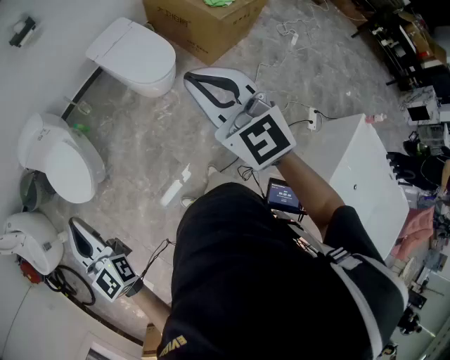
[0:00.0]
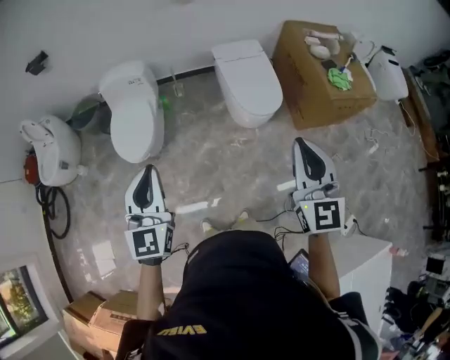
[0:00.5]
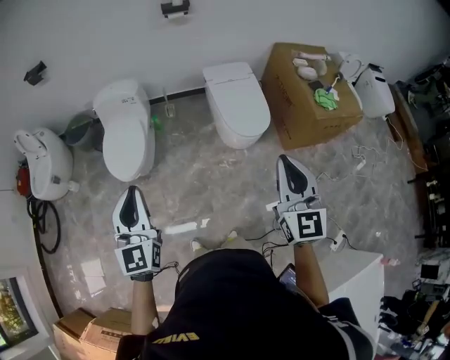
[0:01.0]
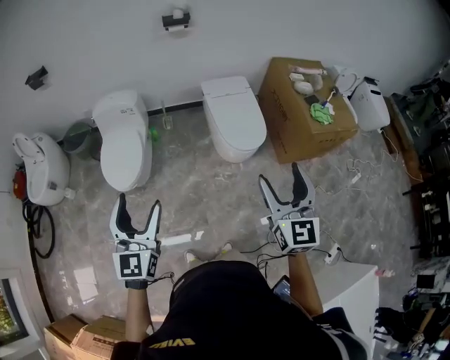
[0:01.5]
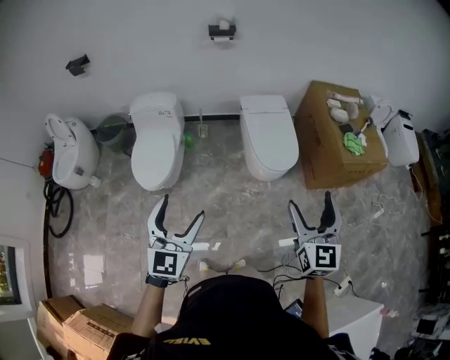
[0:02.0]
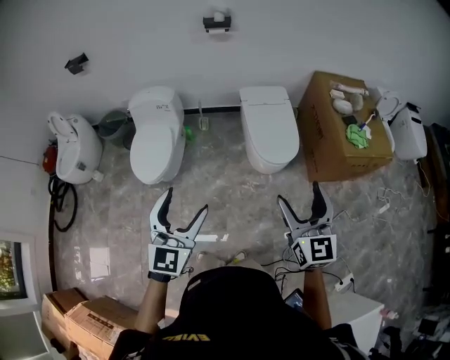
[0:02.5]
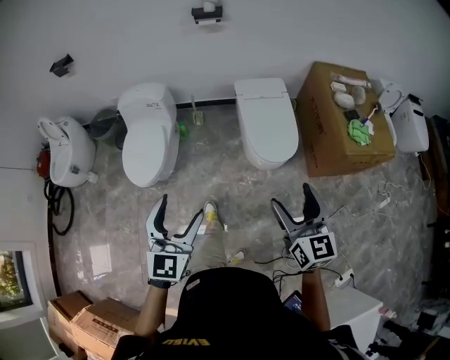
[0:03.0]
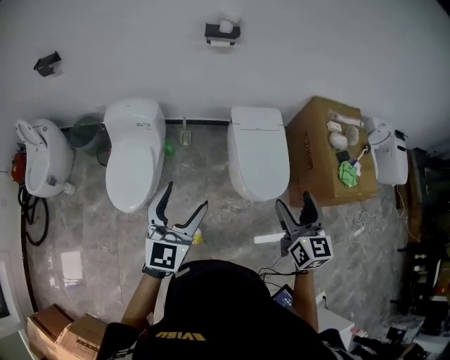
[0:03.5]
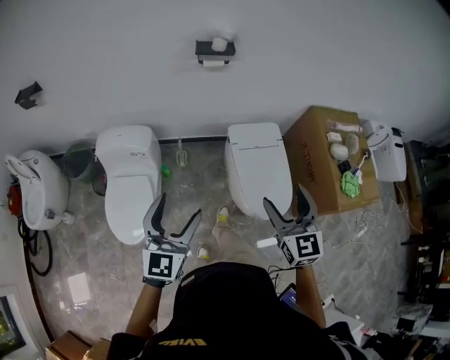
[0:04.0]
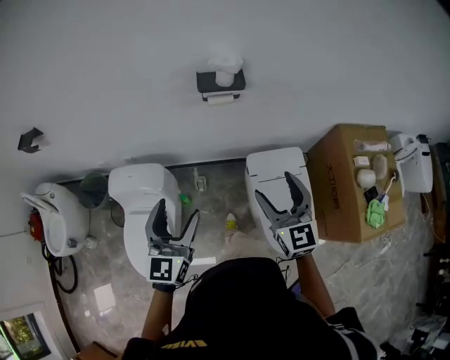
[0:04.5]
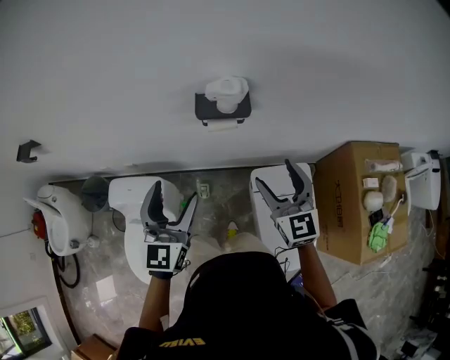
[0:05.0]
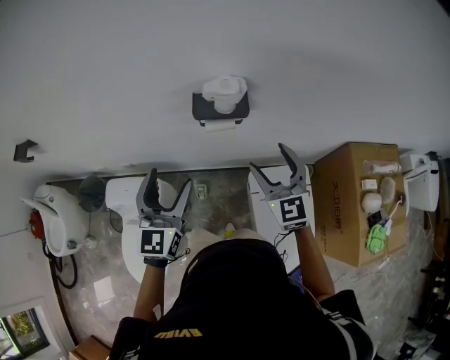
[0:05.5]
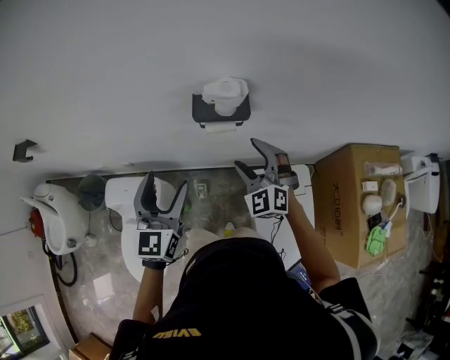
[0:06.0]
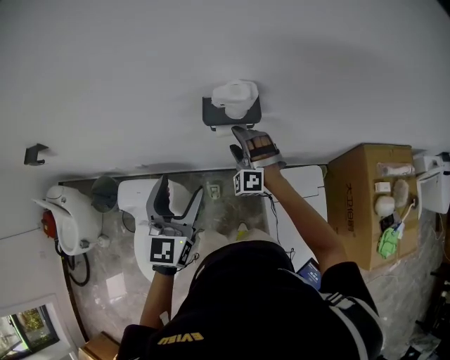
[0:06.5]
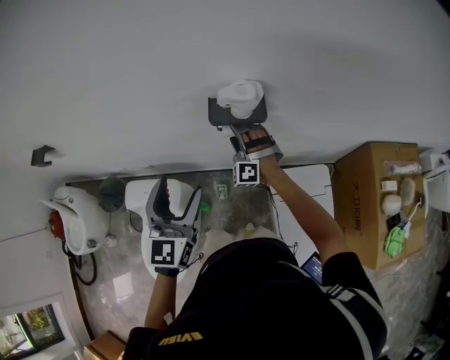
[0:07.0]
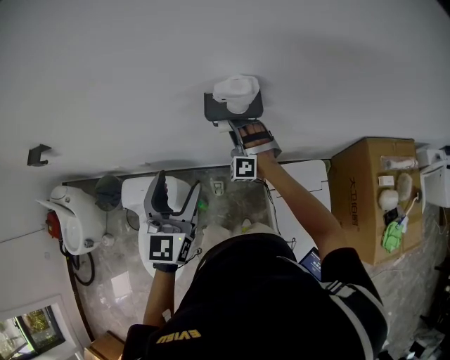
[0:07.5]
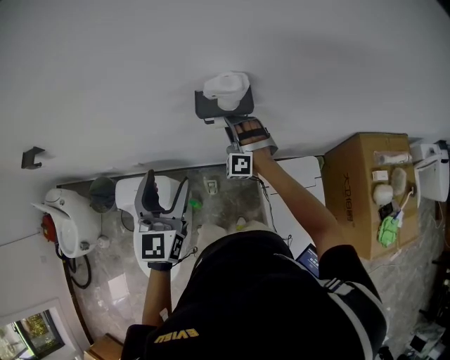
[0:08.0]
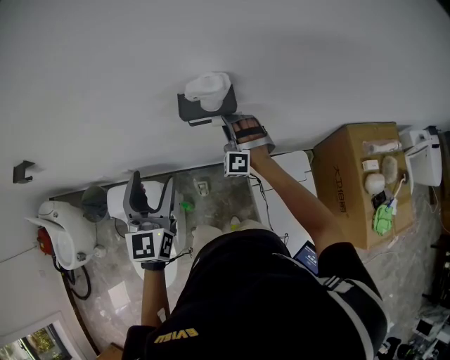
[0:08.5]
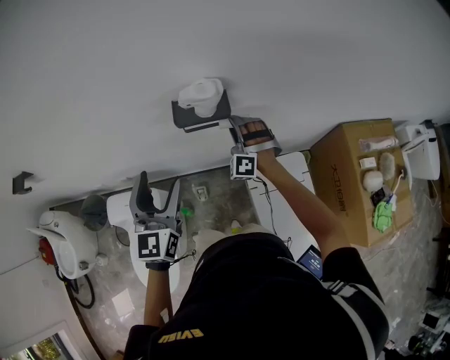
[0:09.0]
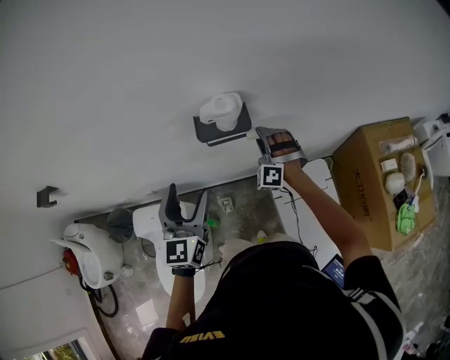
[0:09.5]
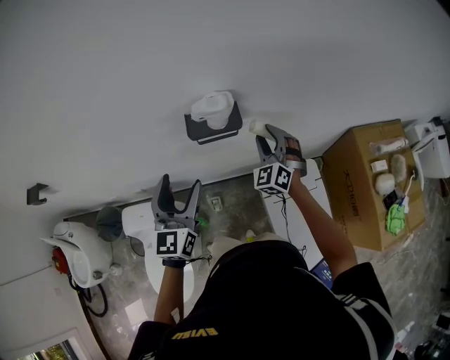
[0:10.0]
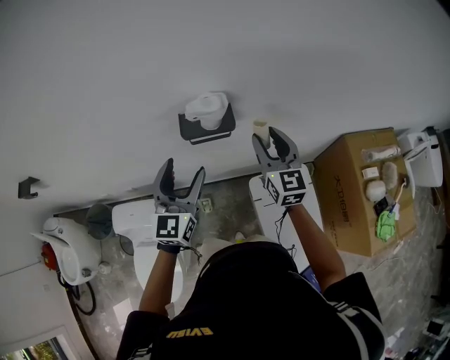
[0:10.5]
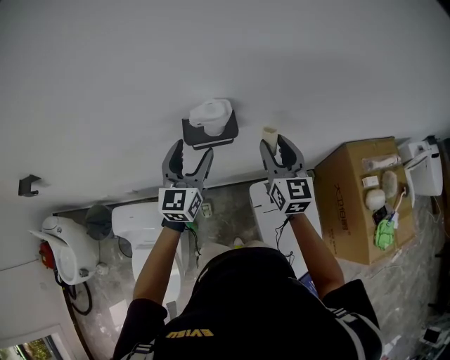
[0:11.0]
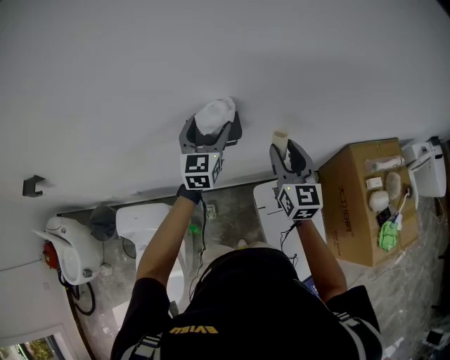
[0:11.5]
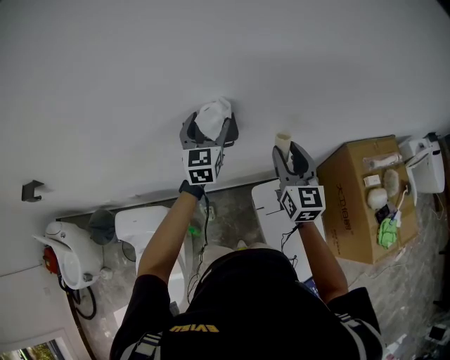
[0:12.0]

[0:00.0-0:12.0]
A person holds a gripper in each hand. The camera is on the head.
0:00.0 to 0:02.0: The left gripper moves to the right, about 10 cm, and opens its fingers, while the right gripper shifts by roughly 5 cm, and opens up.
0:02.0 to 0:04.0: The pair of grippers is taken forward, approximately 40 cm.
0:04.0 to 0:06.0: Both grippers are carried forward, some 50 cm. The right gripper turns by about 40 degrees.
0:06.0 to 0:08.0: The right gripper goes roughly 15 cm forward, downward and to the left, swivels approximately 30 degrees, and closes its fingers.
0:08.0 to 0:10.0: The left gripper moves some 5 cm, while the right gripper travels to the right and upward by about 15 cm, and changes its angle by about 40 degrees.
0:10.0 to 0:12.0: The right gripper heads upward, to the right and backward, covering roughly 15 cm, and rotates around the line of its fingers by some 50 degrees, clockwise from behind, while the left gripper travels forward and to the right by approximately 20 cm.

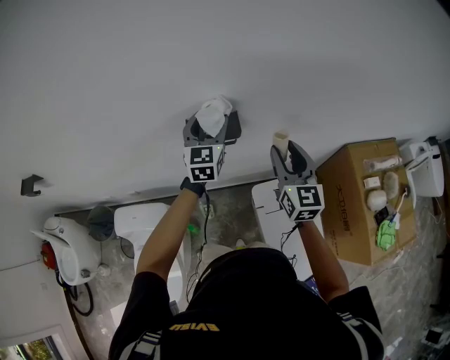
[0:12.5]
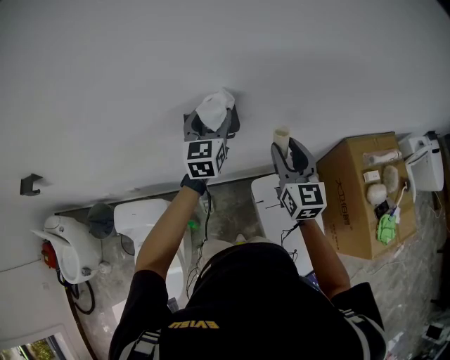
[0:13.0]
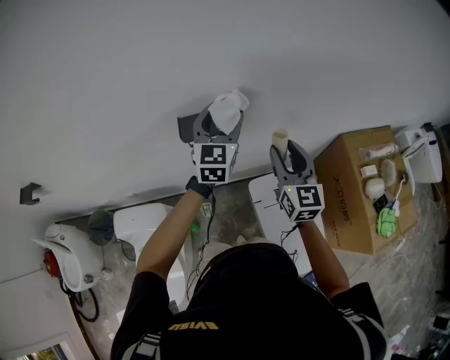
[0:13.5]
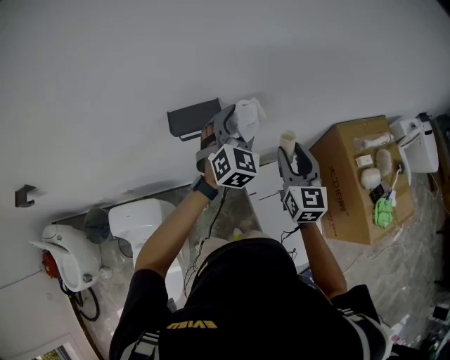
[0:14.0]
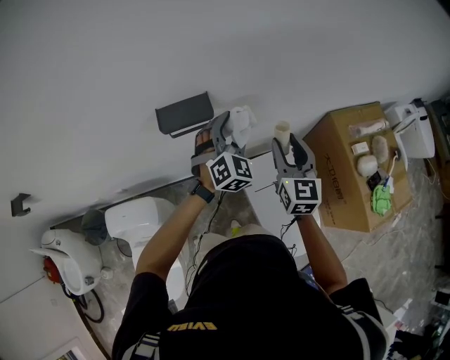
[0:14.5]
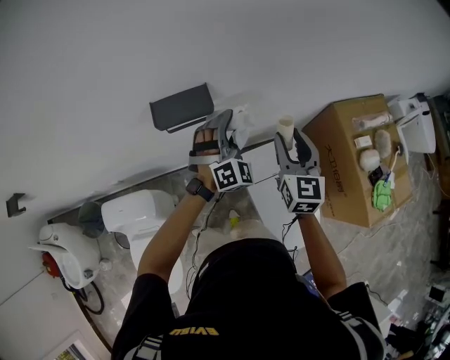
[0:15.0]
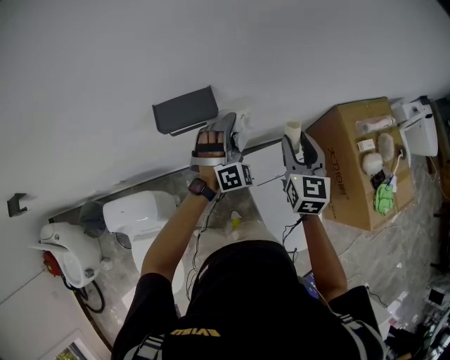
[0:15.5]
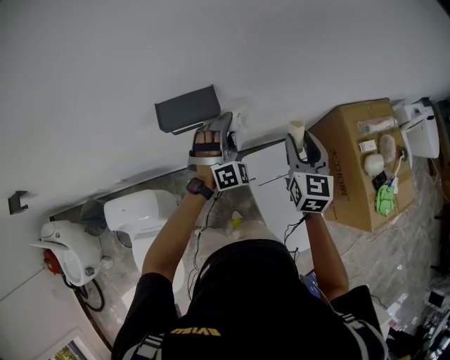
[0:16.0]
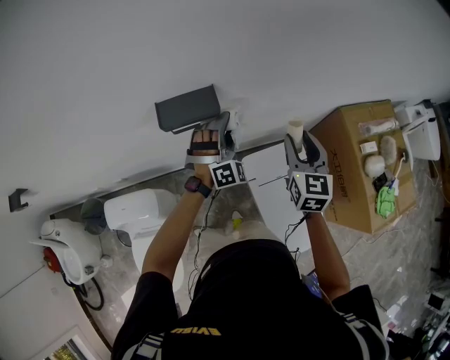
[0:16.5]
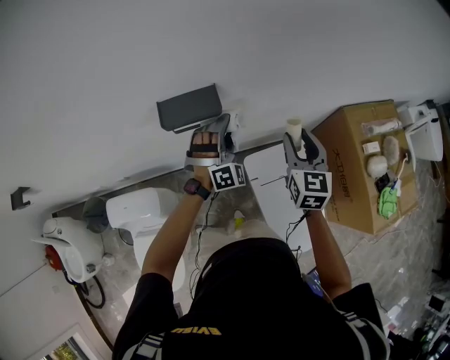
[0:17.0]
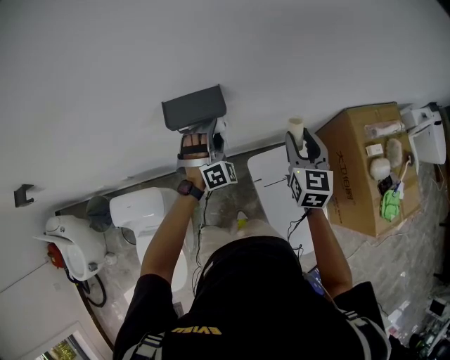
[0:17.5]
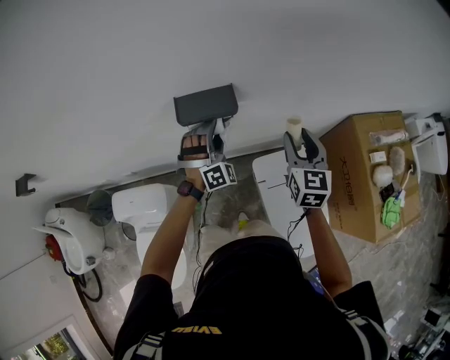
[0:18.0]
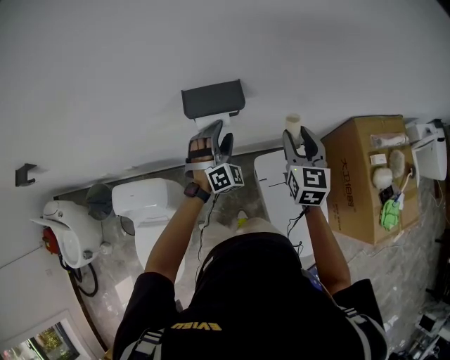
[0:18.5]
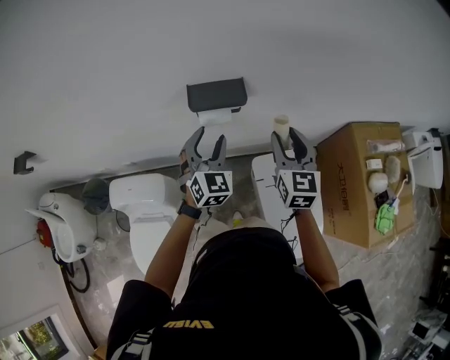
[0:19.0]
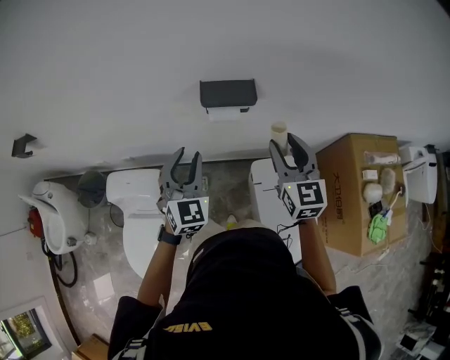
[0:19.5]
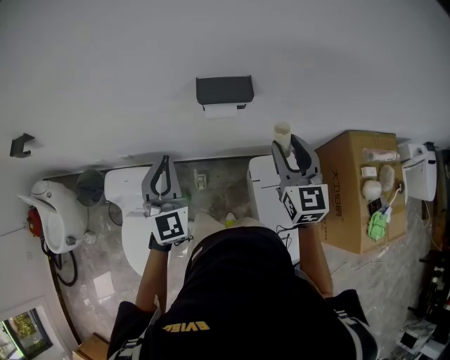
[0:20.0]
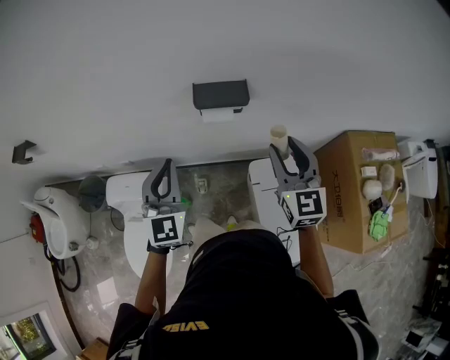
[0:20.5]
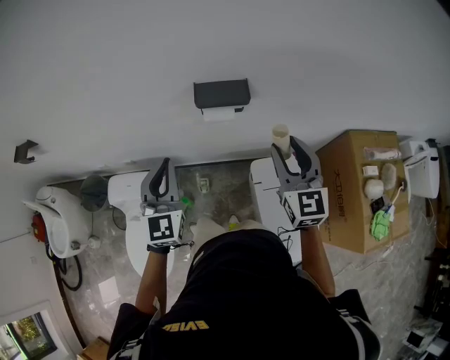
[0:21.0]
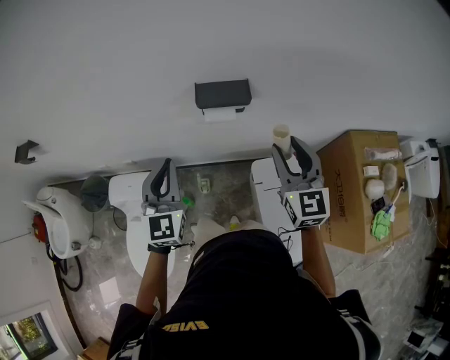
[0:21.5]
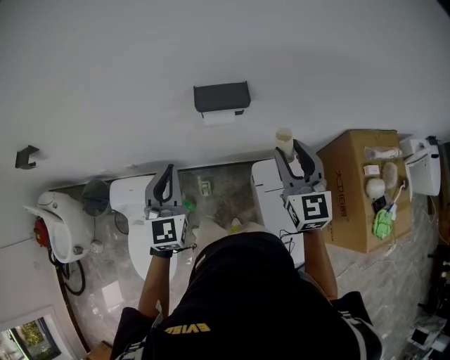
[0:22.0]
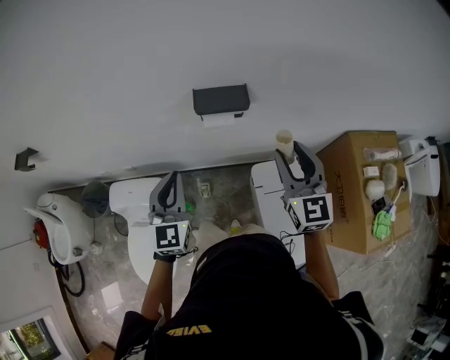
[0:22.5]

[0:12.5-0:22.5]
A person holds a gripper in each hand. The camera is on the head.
0:12.5 to 0:14.5: The right gripper heads to the right, covering some 5 cm. The left gripper moves to the right and backward, some 15 cm, and rotates approximately 40 degrees.
0:14.5 to 0:16.5: The right gripper changes place by approximately 5 cm, while the left gripper goes roughly 10 cm downward, and changes its angle by about 30 degrees.
0:16.5 to 0:18.5: Both grippers travel together to the left, roughly 5 cm.
0:18.5 to 0:20.5: The left gripper travels upward, to the left and backward by about 30 cm, rotates around the line of its fingers by approximately 50 degrees, counterclockwise from behind, and closes up, while the right gripper is displaced upward, backward and to the left by about 15 cm.
0:20.5 to 0:22.5: The grippers move only a little.

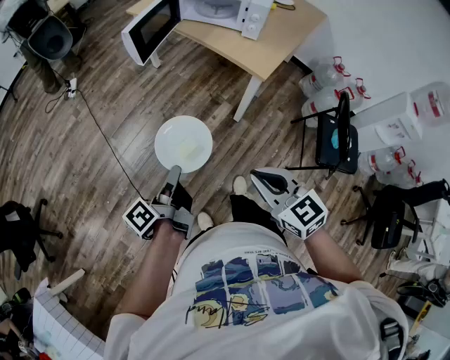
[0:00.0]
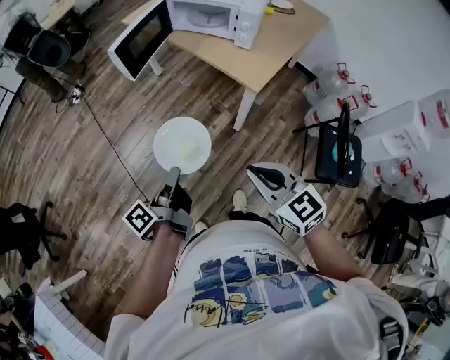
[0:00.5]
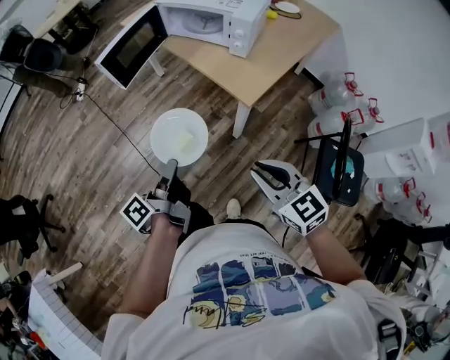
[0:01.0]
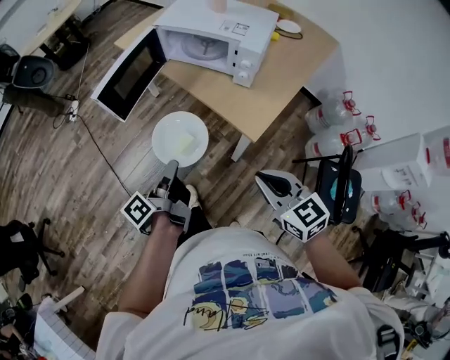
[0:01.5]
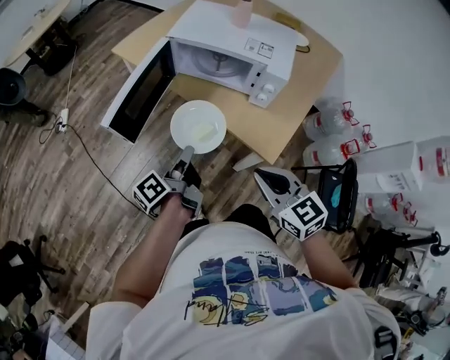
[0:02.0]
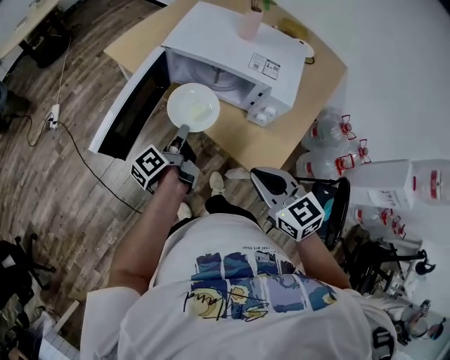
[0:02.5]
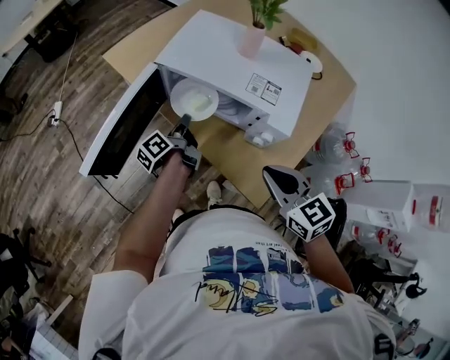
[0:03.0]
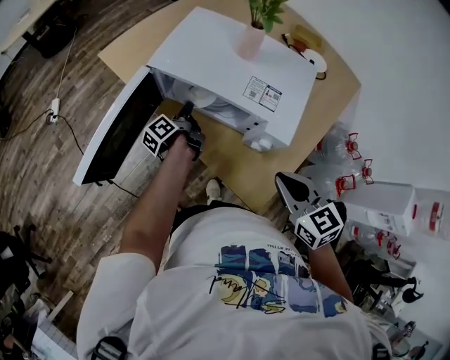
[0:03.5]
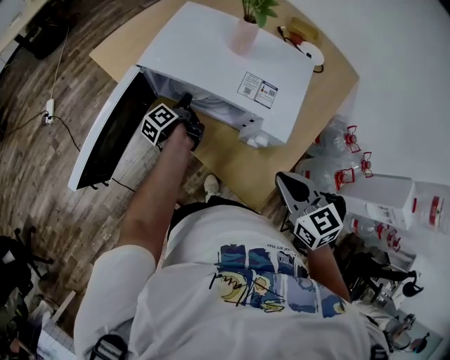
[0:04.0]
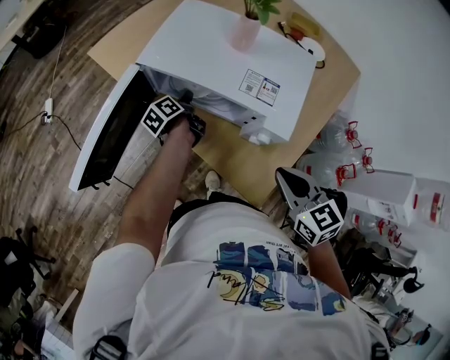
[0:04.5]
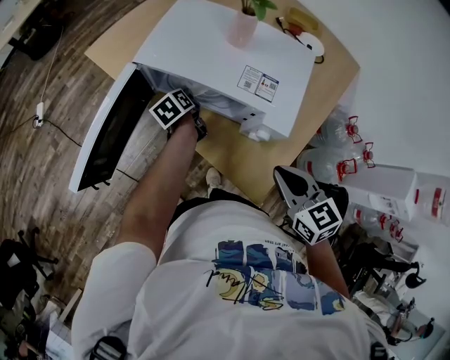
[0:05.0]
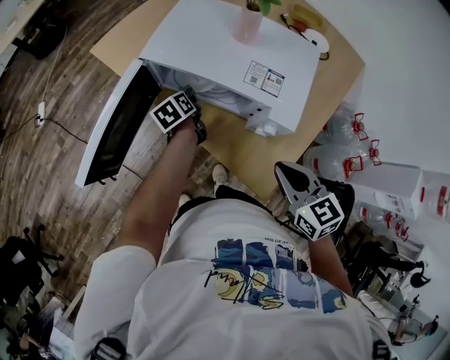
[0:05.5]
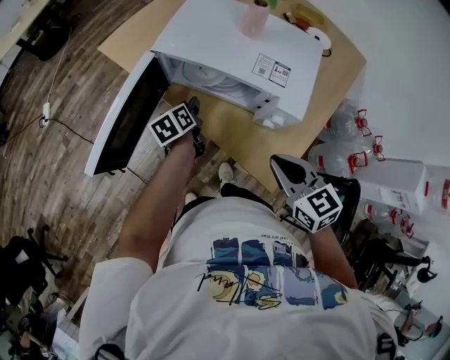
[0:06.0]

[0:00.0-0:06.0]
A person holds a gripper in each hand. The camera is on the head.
0:00.0 to 0:02.0: Both grippers travel together forward, approximately 40 cm.
0:02.0 to 0:04.0: The right gripper is displaced forward and to the right by about 25 cm, while the left gripper shifts about 35 cm forward.
0:04.0 to 0:06.0: The right gripper moves to the left, approximately 5 cm. Meanwhile the left gripper goes roughly 5 cm backward, turns by approximately 40 degrees, and opens its fingers.
